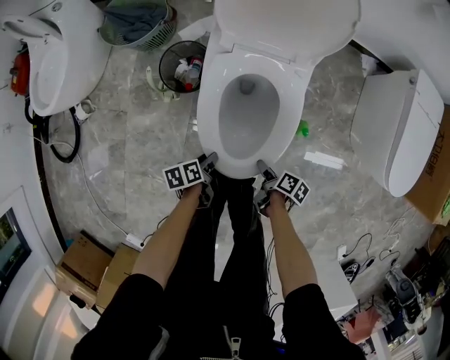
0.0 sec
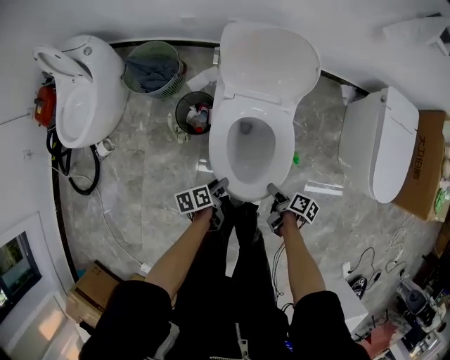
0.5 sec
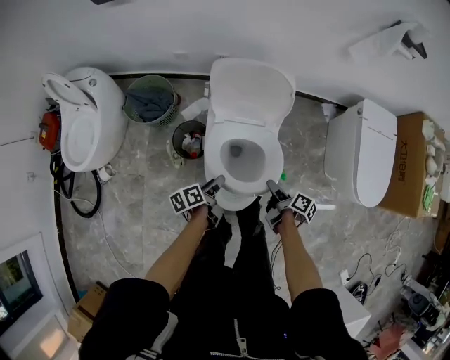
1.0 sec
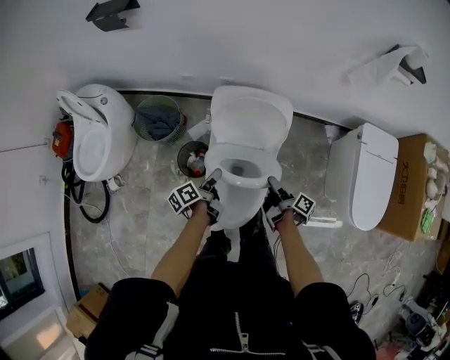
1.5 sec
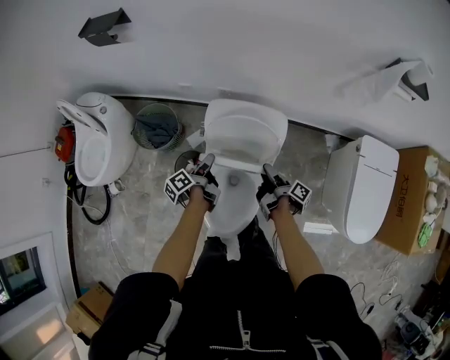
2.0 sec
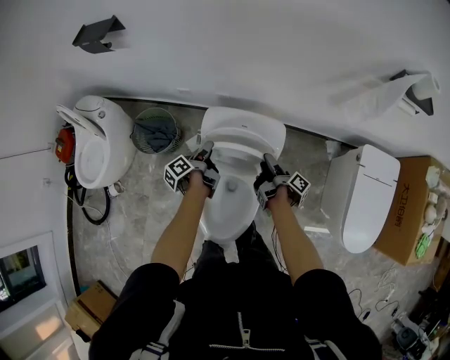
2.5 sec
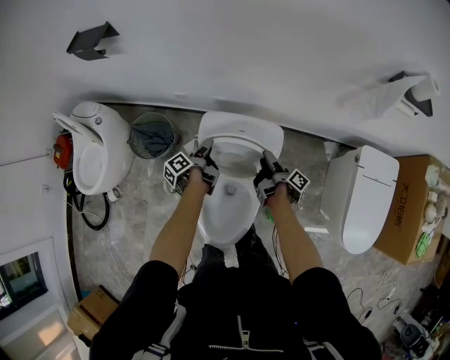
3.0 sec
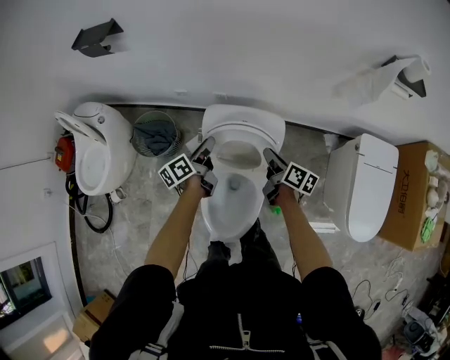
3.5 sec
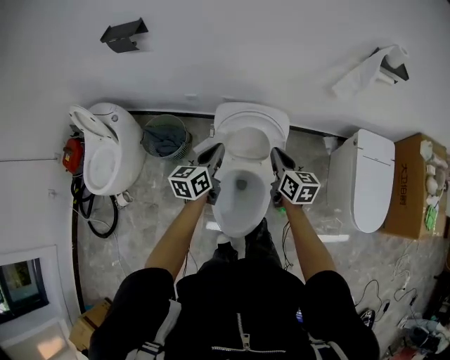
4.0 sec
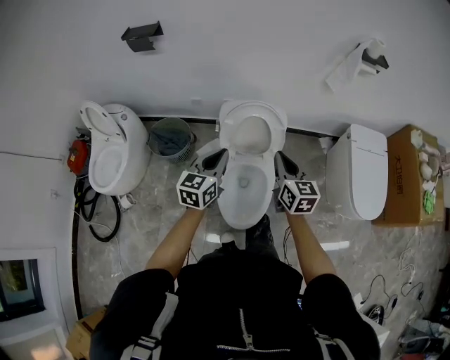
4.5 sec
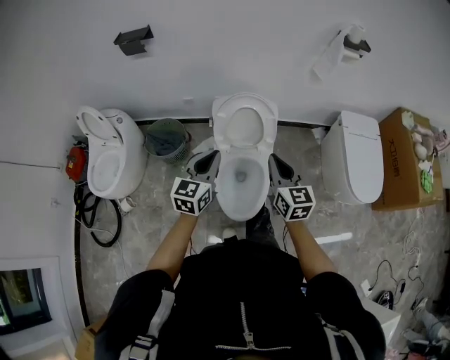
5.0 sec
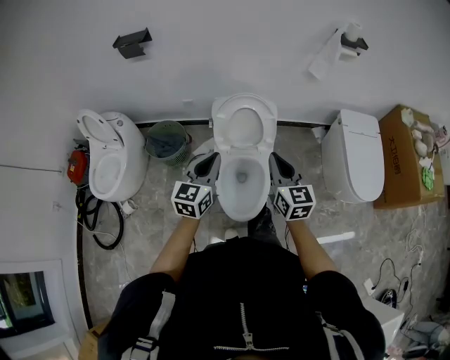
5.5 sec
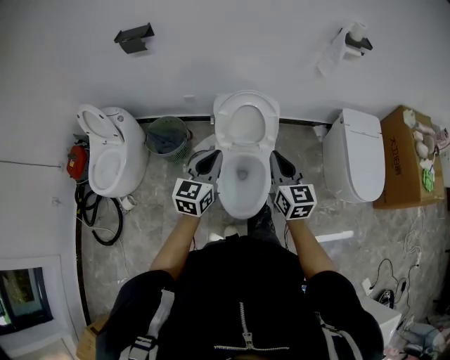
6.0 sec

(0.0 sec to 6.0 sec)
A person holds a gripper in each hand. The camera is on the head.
0.0 sec - 2.0 sec: The two grippers go approximately 50 cm forward and upward. The left gripper turns by roughly 40 degrees. Meanwhile the right gripper points its fingers roughly 30 degrees further upward.
2.0 sec - 4.0 sec: The two grippers go some 15 cm upward. The right gripper rotates around the line of its fingers by roughly 70 degrees, counterclockwise from behind, and closes; the left gripper twists roughly 60 degrees clockwise, seen from behind, and closes up.
4.0 sec - 6.0 sec: Both grippers travel together backward and upward, some 25 cm. The right gripper turns by roughly 20 degrees. Meanwhile the left gripper rotates approximately 30 degrees.

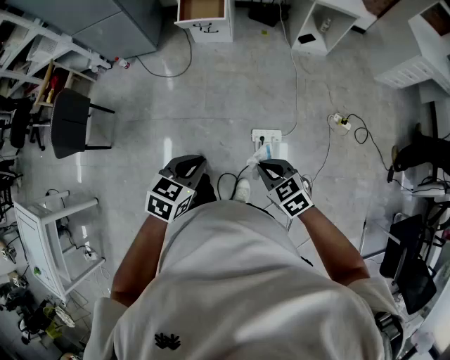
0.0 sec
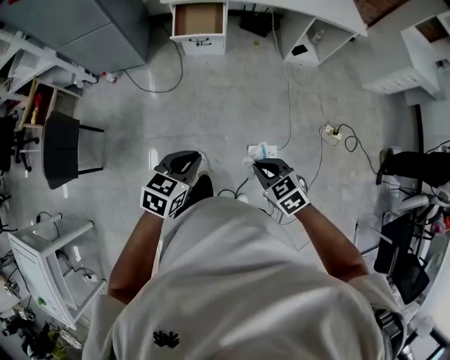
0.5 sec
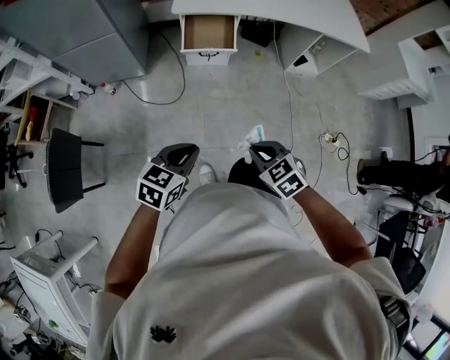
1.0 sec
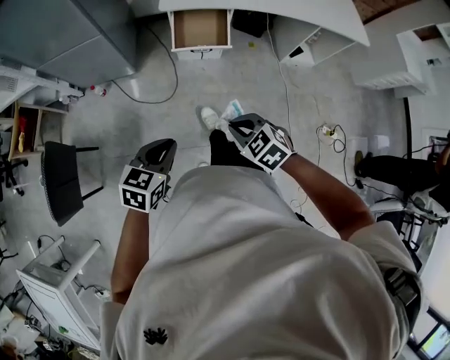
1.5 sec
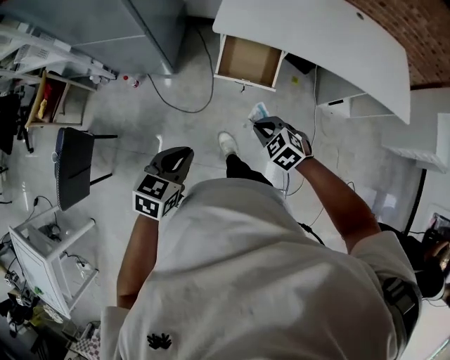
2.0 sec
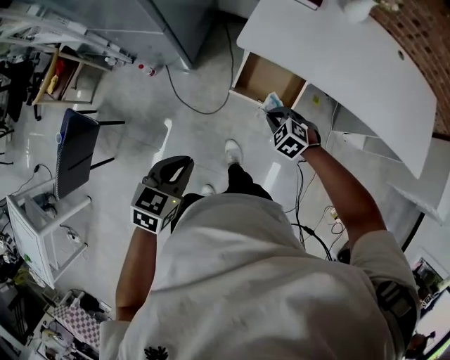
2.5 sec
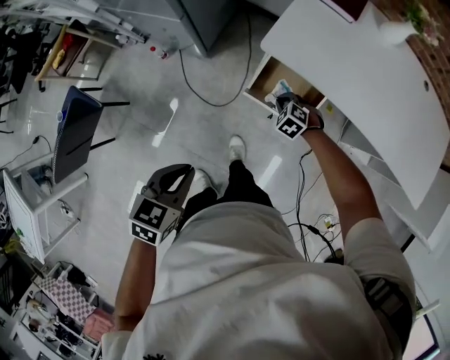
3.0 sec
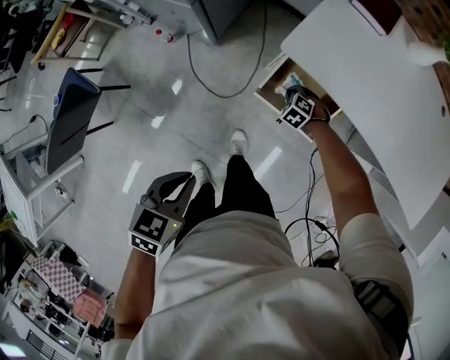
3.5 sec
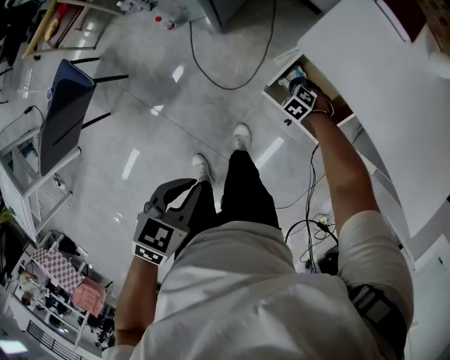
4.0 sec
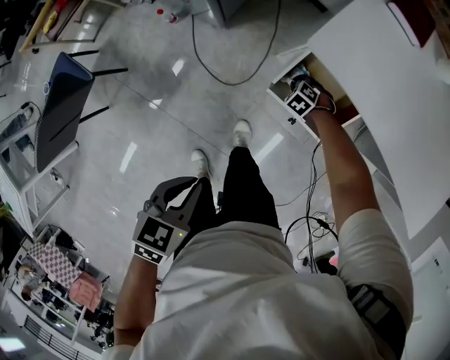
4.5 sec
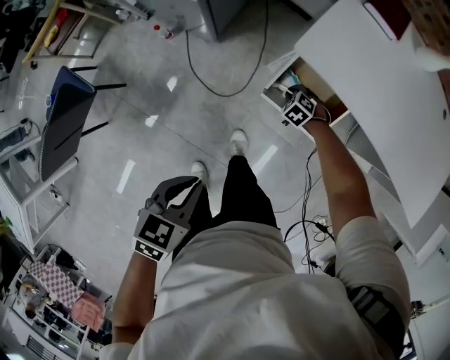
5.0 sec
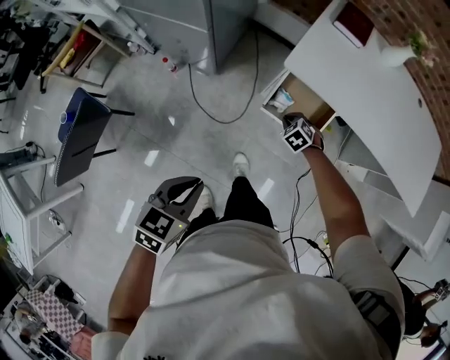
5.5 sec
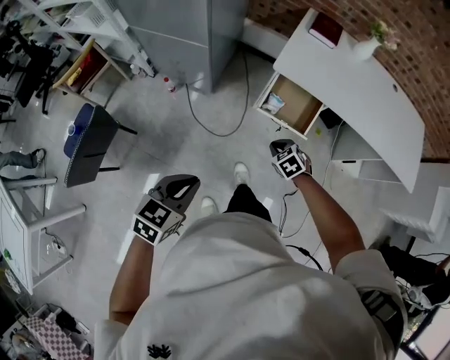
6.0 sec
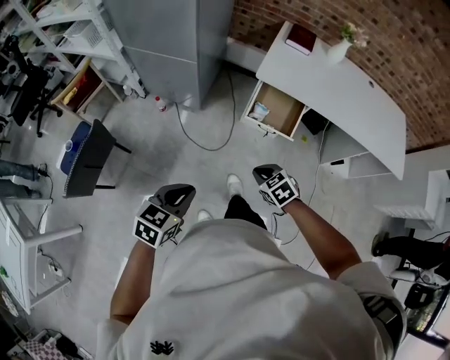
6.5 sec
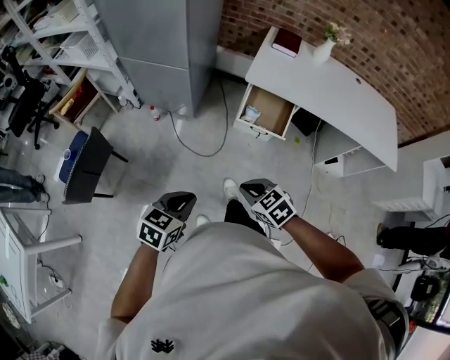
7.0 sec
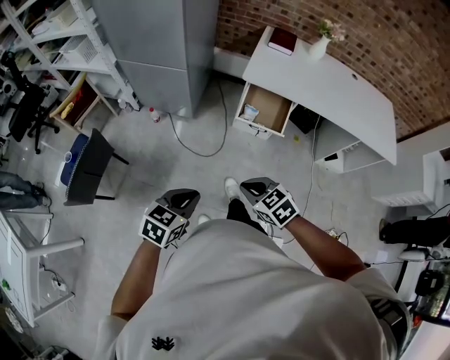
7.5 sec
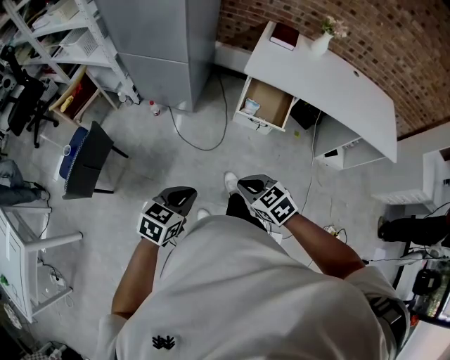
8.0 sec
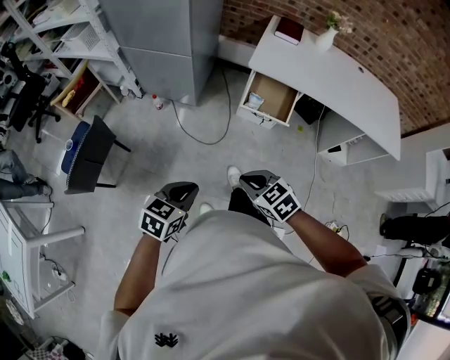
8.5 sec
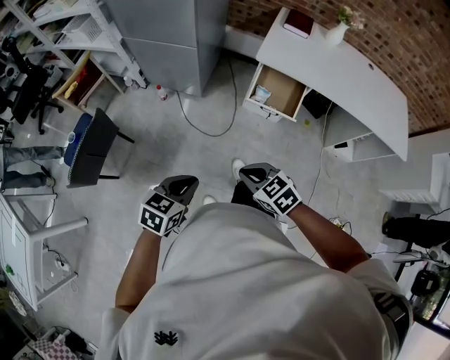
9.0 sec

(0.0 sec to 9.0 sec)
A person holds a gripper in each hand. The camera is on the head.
0.0 sec - 2.0 sec: The two grippers travel together, forward, some 70 cm. The right gripper changes its angle by approximately 30 degrees.
2.0 sec - 4.5 sec: The right gripper ends up some 60 cm from where it was, and changes its angle by about 30 degrees. The left gripper moves approximately 25 cm, and rotates some 30 degrees.
4.5 sec - 7.0 sec: The right gripper shifts by some 80 cm, and rotates about 40 degrees. Meanwhile the left gripper ends up some 40 cm from where it was, and changes its angle by some 30 degrees.
7.0 sec - 9.0 sec: The grippers stay close to where they were, moving slightly.

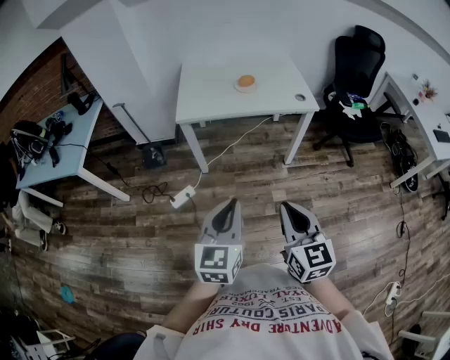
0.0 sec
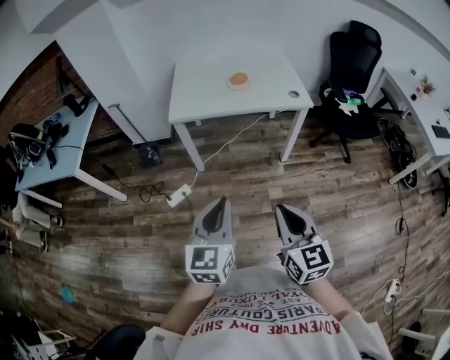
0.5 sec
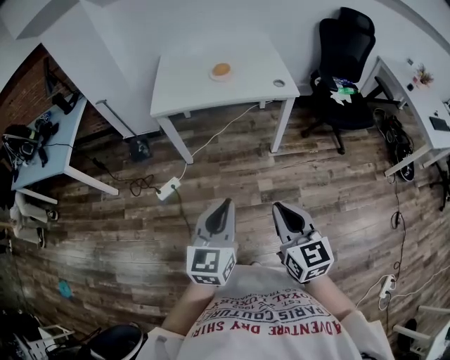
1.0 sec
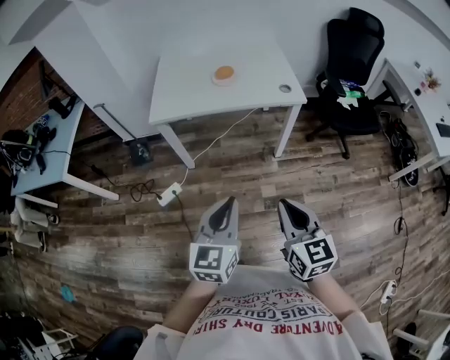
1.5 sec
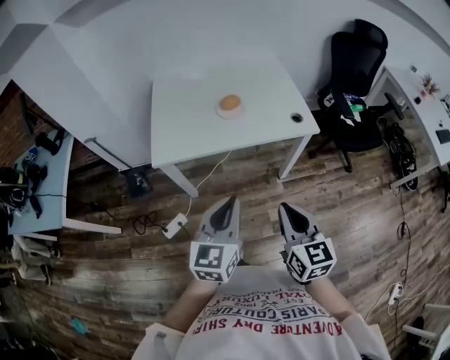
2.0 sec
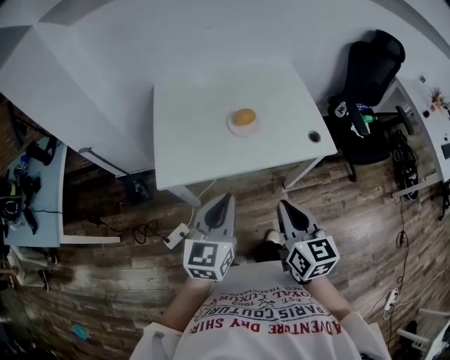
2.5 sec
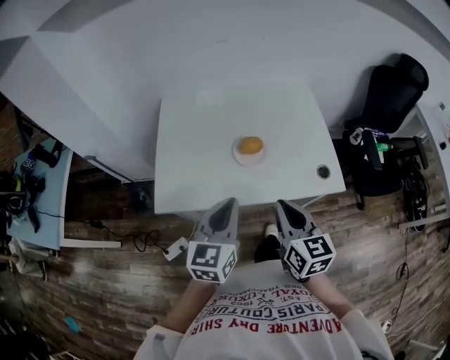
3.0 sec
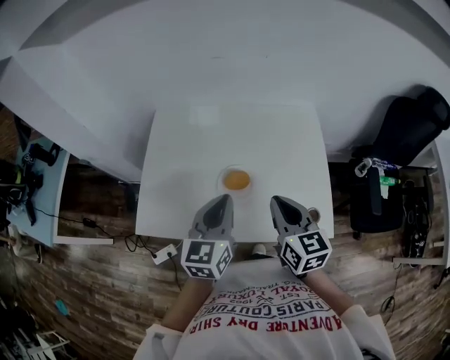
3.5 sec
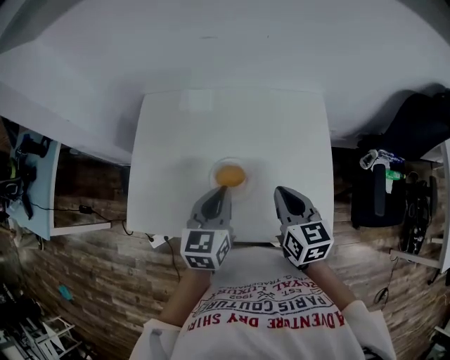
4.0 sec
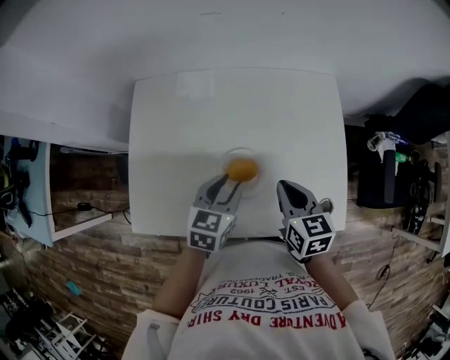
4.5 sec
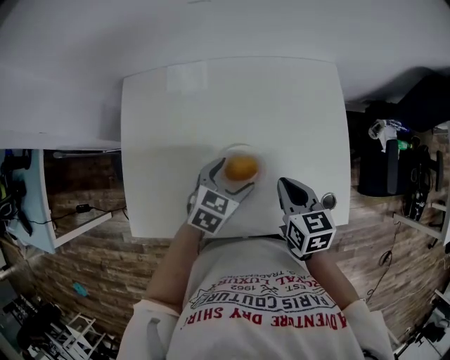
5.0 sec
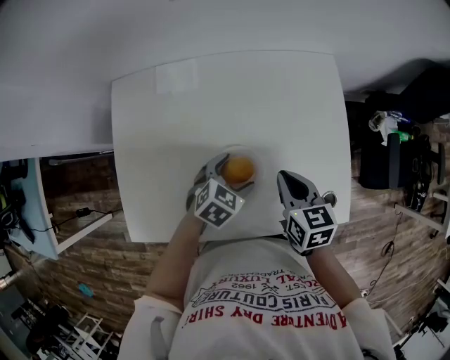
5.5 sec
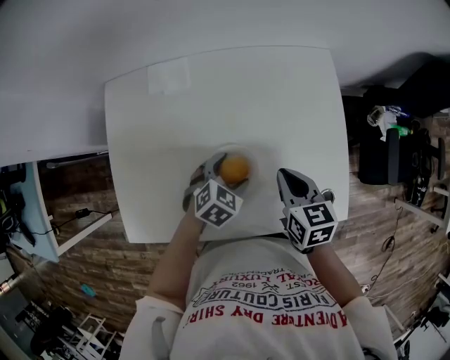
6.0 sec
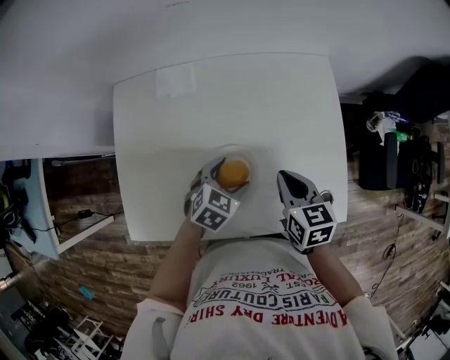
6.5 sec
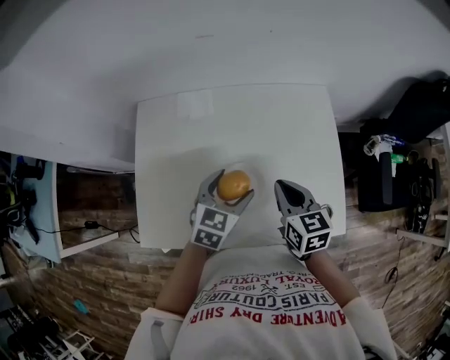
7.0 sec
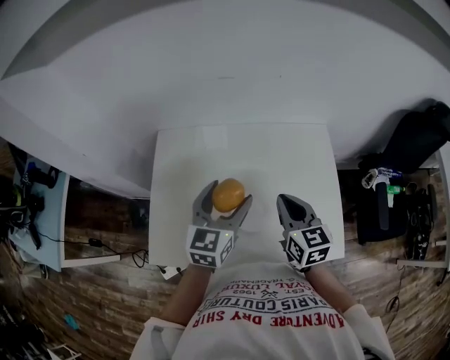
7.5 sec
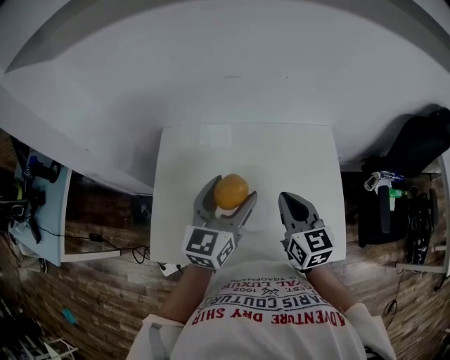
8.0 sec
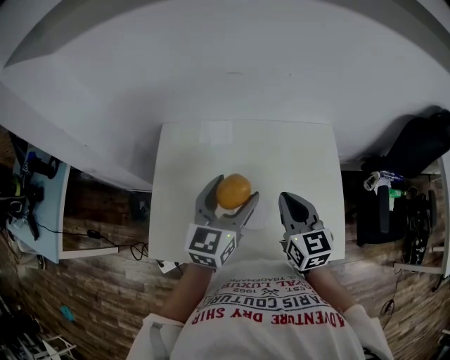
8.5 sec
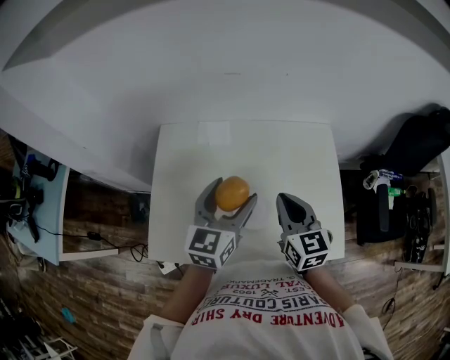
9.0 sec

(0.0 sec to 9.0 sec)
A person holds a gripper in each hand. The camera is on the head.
0.0 sec - 2.0 sec: The two grippers go approximately 25 cm forward.
2.0 sec - 4.5 sec: The two grippers travel together, forward, about 50 cm. The left gripper changes its angle by approximately 30 degrees, while the right gripper changes its angle by approximately 20 degrees.
4.5 sec - 7.0 sec: The left gripper goes downward and returns, roughly 10 cm each way, and opens up.
7.0 sec - 9.0 sec: The right gripper heads upward, covering approximately 10 cm. Meanwhile the left gripper travels upward by about 15 cm, and rotates some 30 degrees.

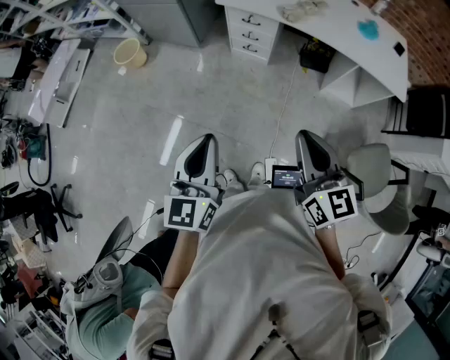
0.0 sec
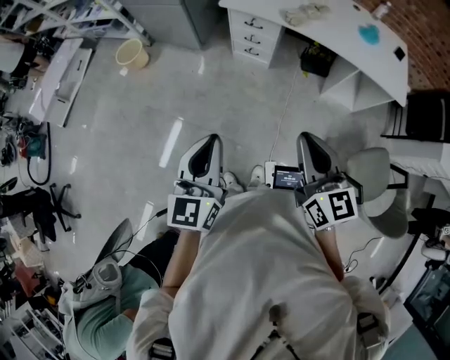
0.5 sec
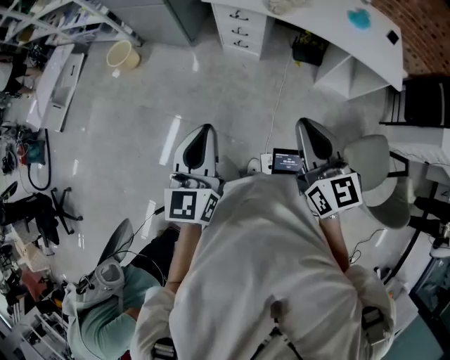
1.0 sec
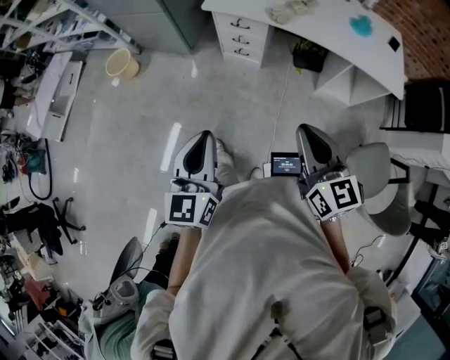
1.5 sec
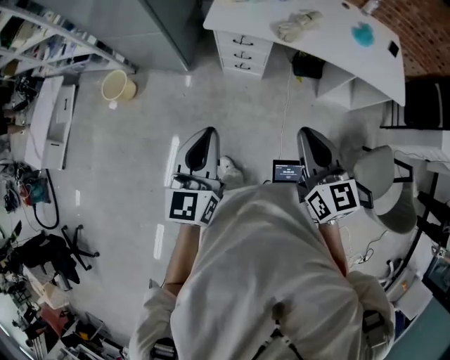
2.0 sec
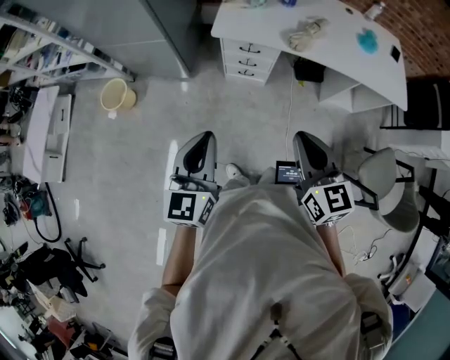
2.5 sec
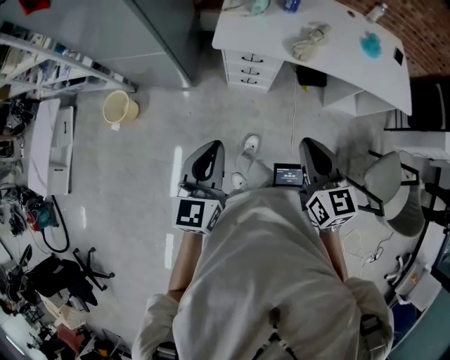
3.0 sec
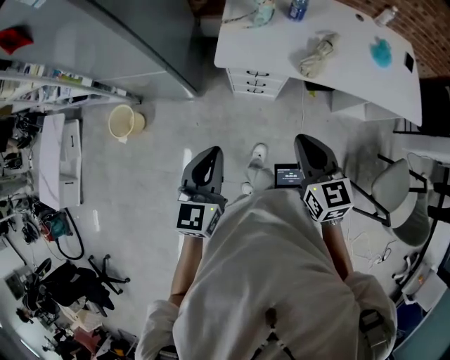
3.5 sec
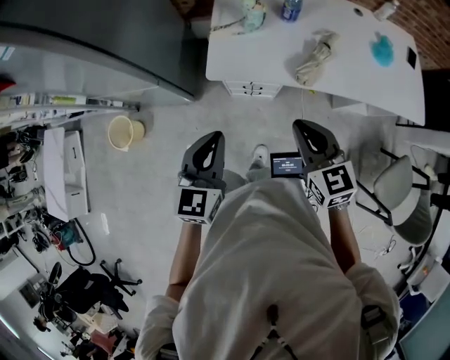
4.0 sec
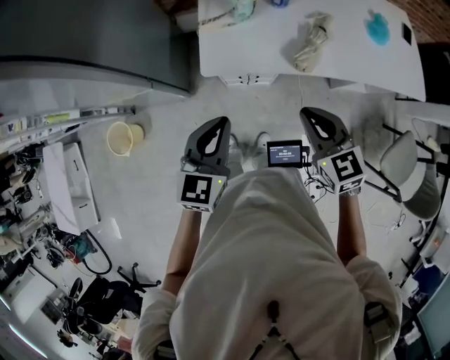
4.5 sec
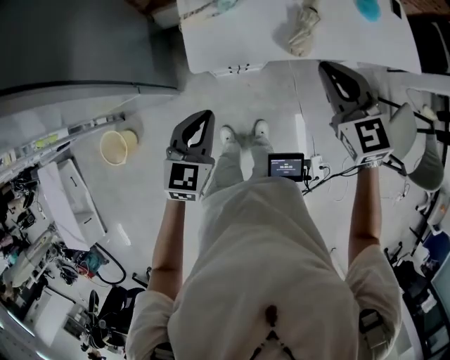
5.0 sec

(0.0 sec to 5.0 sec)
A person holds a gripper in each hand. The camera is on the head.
0.0 sec - 2.5 sec: The right gripper moves forward and to the left, roughly 25 cm, while the left gripper goes some 25 cm forward.
2.5 sec - 5.0 sec: Both grippers move forward, about 35 cm. The left gripper rotates some 40 degrees.
